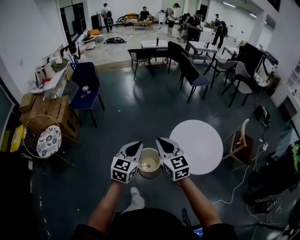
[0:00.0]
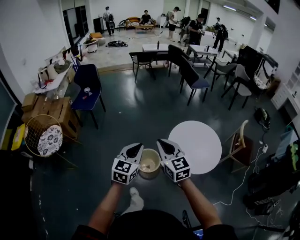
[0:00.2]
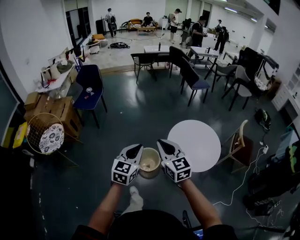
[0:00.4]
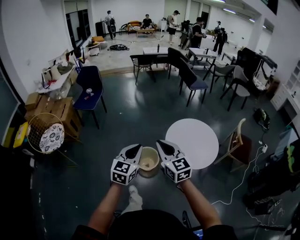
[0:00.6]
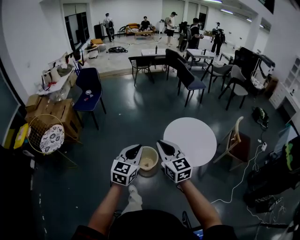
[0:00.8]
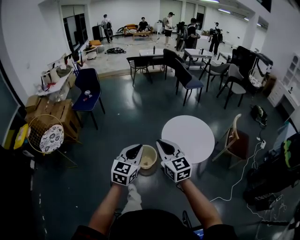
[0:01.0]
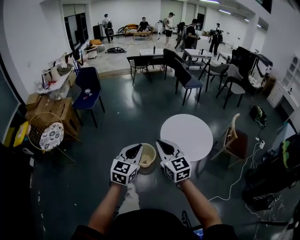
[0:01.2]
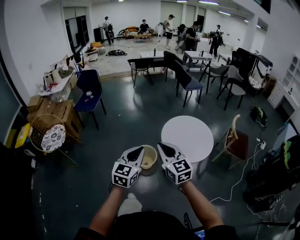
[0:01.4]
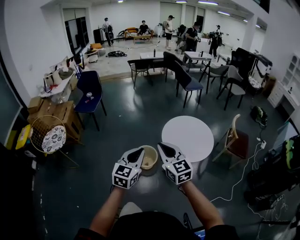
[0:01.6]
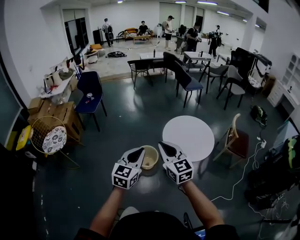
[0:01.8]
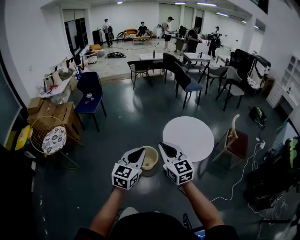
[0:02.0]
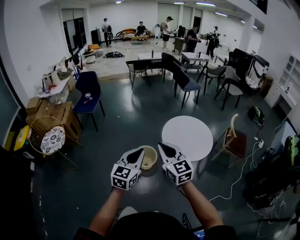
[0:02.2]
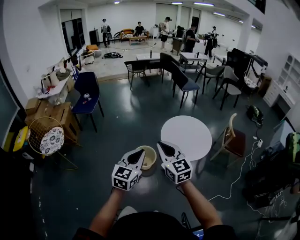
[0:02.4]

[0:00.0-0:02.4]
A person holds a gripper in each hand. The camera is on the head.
0:00.0 to 0:01.2: The grippers both shift backward by roughly 20 cm.
0:01.2 to 0:02.4: The left gripper travels backward by about 5 cm.

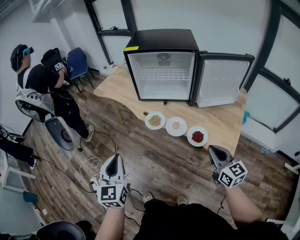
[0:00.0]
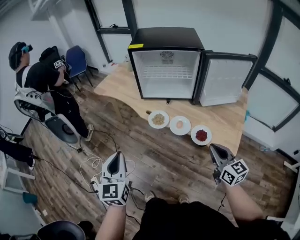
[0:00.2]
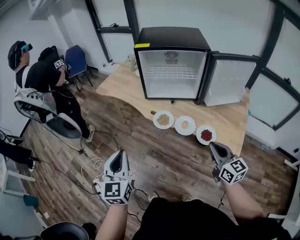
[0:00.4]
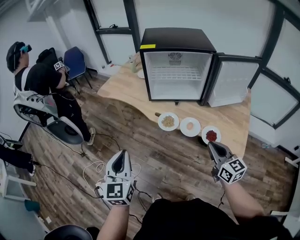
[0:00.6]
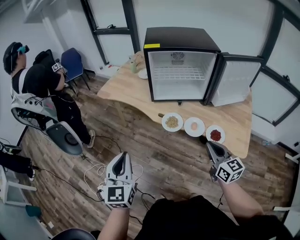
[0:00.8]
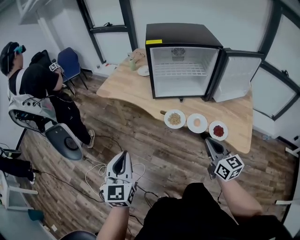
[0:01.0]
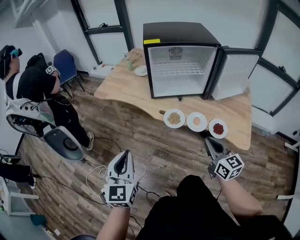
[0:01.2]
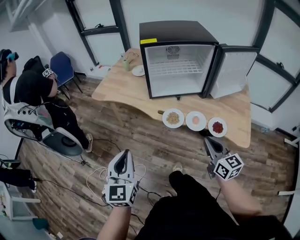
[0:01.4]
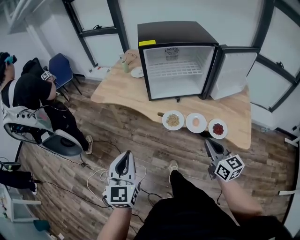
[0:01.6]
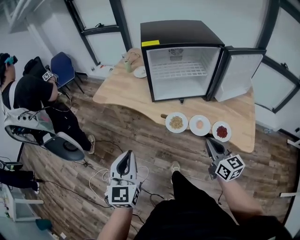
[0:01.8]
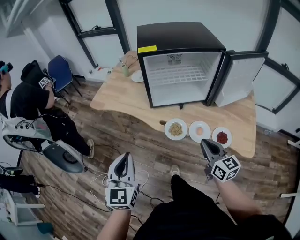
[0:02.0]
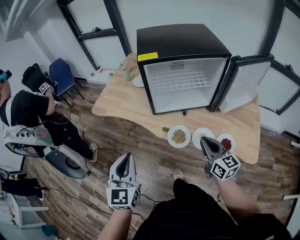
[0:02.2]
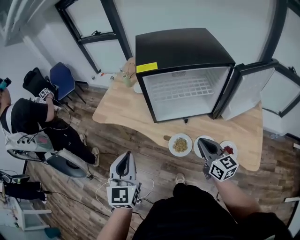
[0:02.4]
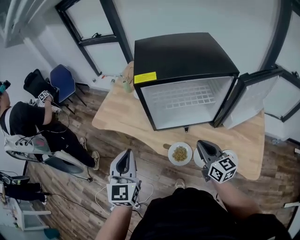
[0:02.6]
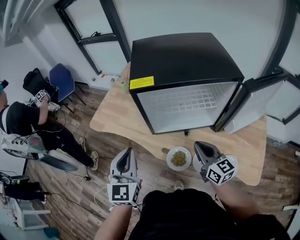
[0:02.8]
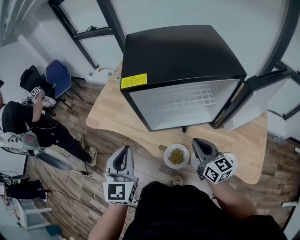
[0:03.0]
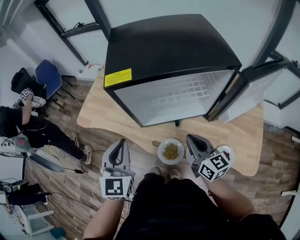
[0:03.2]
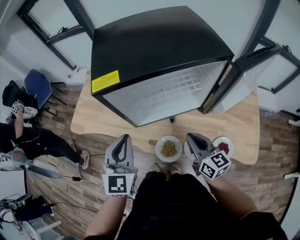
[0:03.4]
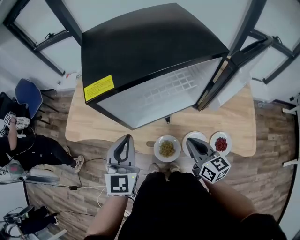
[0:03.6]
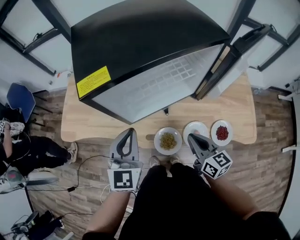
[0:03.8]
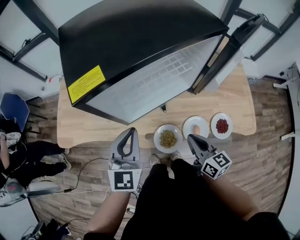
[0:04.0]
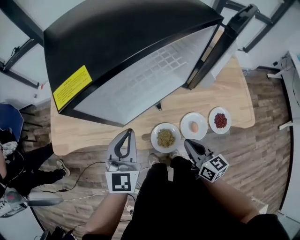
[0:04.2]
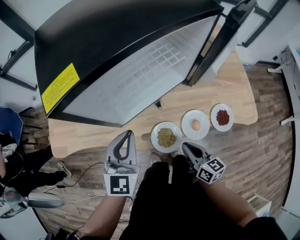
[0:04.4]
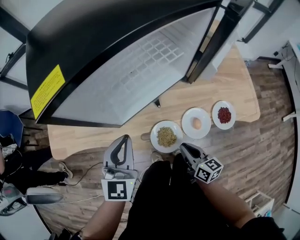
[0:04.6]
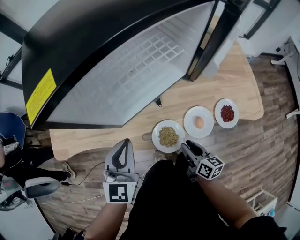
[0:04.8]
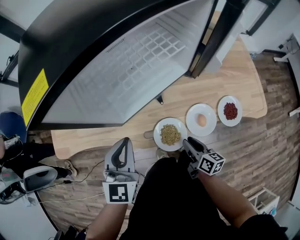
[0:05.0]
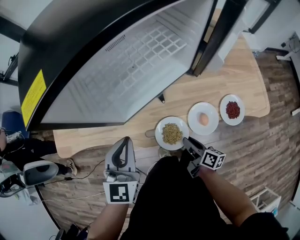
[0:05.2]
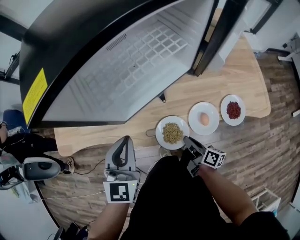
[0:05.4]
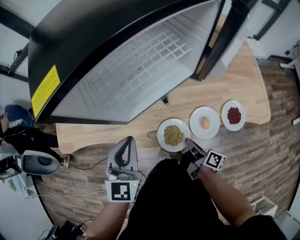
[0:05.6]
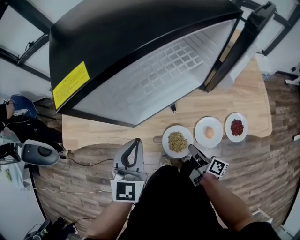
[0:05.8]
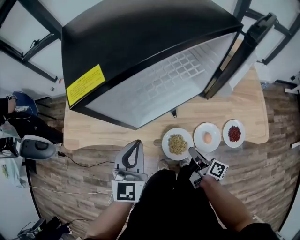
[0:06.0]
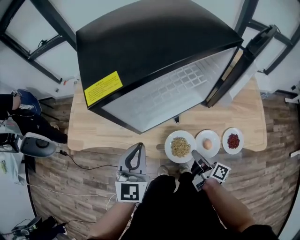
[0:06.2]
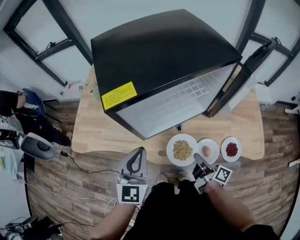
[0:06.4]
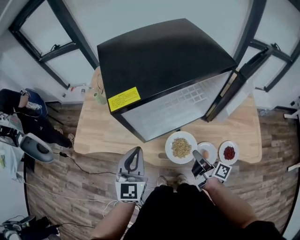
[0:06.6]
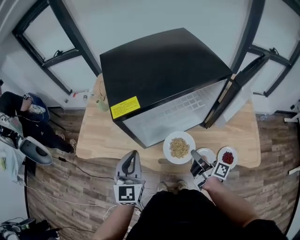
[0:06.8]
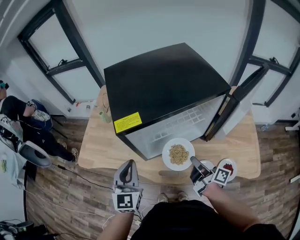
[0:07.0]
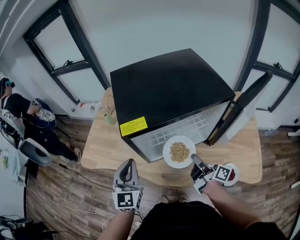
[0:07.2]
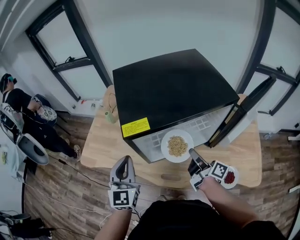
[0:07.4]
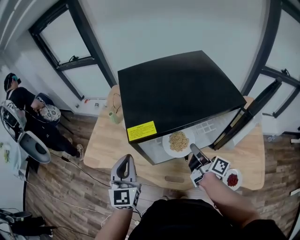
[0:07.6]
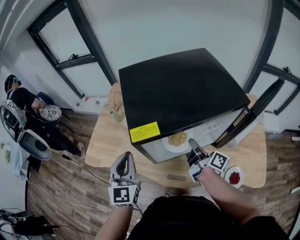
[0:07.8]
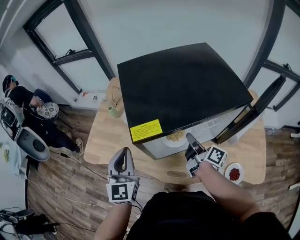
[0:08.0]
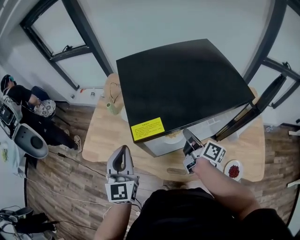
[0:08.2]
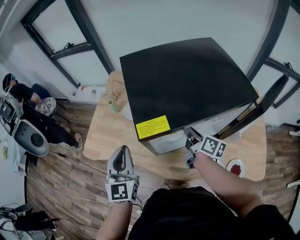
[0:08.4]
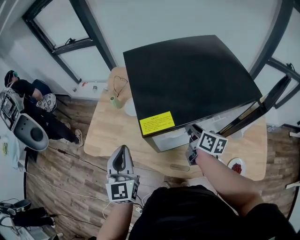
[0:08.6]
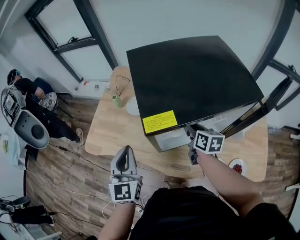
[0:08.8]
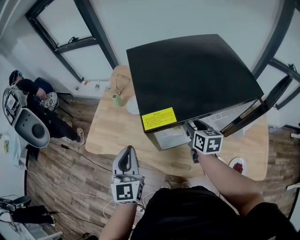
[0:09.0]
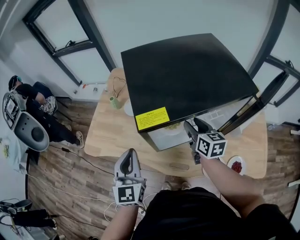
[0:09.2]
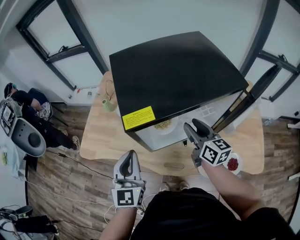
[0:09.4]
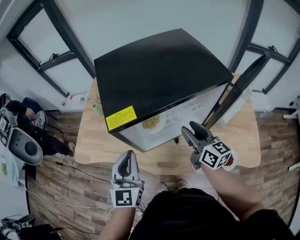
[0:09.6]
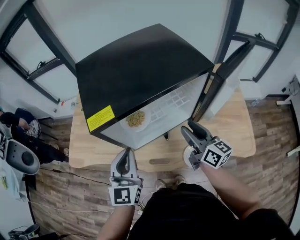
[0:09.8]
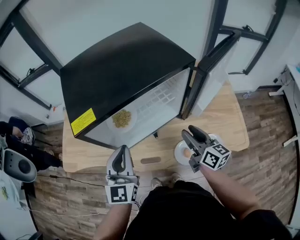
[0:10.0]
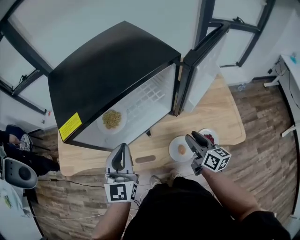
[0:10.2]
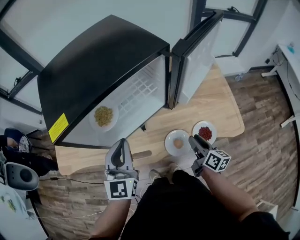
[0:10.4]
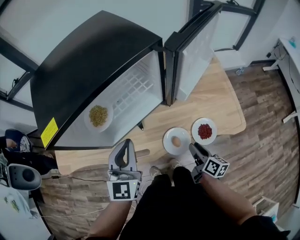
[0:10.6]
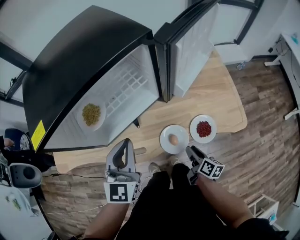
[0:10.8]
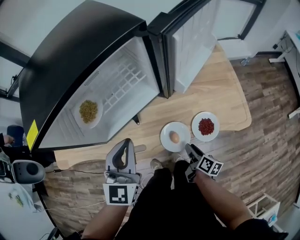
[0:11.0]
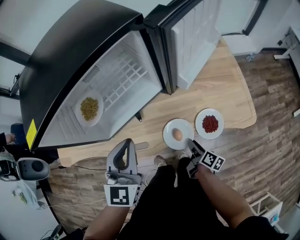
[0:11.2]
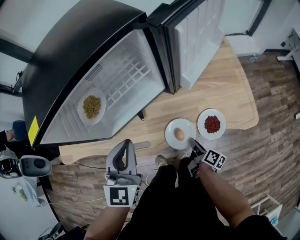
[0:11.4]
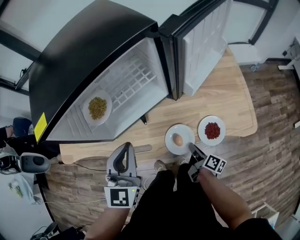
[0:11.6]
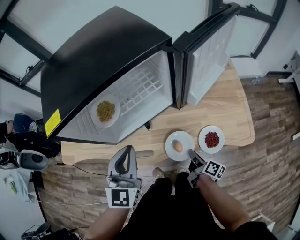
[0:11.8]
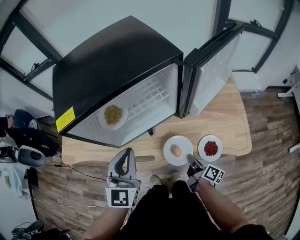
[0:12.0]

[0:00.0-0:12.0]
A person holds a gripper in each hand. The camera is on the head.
0:00.0 to 0:01.6: Both grippers move to the left and forward, approximately 20 cm.
0:01.6 to 0:03.0: The two grippers go some 30 cm forward.
0:03.0 to 0:04.4: The left gripper changes place by roughly 15 cm, and changes its angle by approximately 30 degrees, while the right gripper is displaced downward by some 15 cm, and rotates some 30 degrees.
0:04.4 to 0:06.0: The right gripper moves some 10 cm downward and comes back, rotates about 40 degrees, and opens, then closes once more.
0:06.0 to 0:07.6: The right gripper moves forward and upward, roughly 25 cm. Meanwhile the left gripper goes approximately 15 cm upward, to the left and forward, and turns by some 20 degrees.
0:07.6 to 0:09.0: The right gripper travels forward and to the left by some 10 cm, rolls counterclockwise, seen from behind, by roughly 40 degrees, and opens.
0:09.0 to 0:10.4: The left gripper travels to the right by about 25 cm, and turns by approximately 30 degrees; the right gripper shifts approximately 35 cm to the right and backward, and changes its angle by about 40 degrees.
0:10.4 to 0:12.0: The right gripper travels downward by about 5 cm, swivels approximately 30 degrees, and closes up.

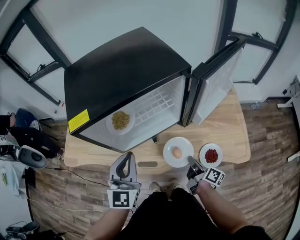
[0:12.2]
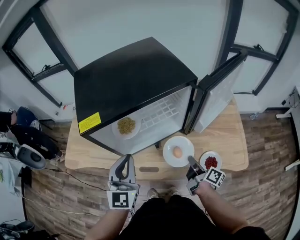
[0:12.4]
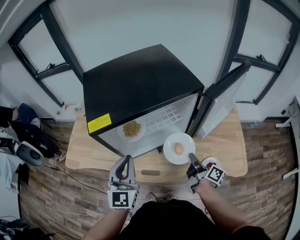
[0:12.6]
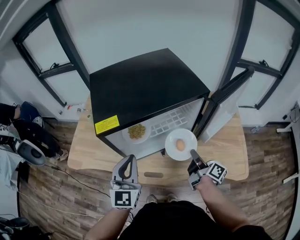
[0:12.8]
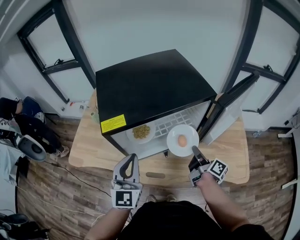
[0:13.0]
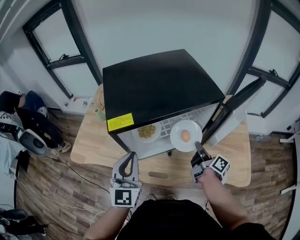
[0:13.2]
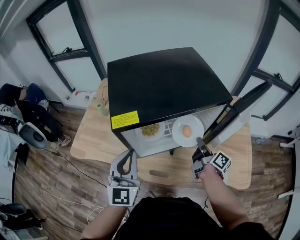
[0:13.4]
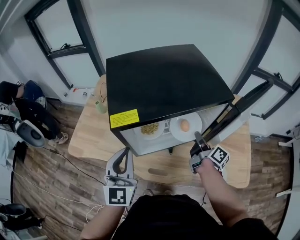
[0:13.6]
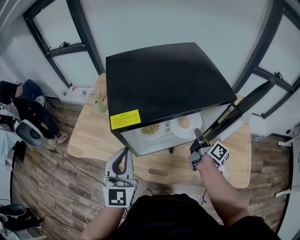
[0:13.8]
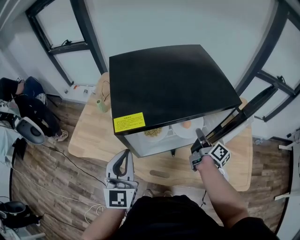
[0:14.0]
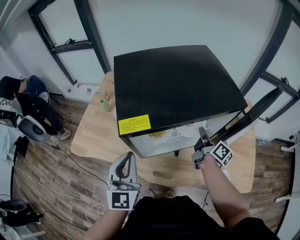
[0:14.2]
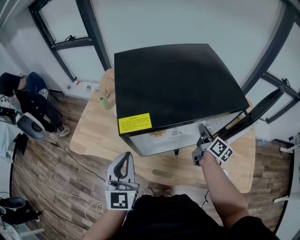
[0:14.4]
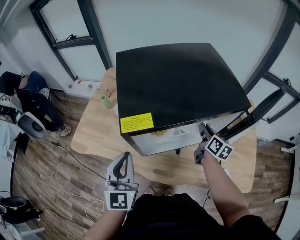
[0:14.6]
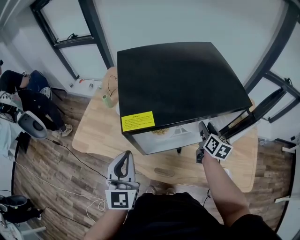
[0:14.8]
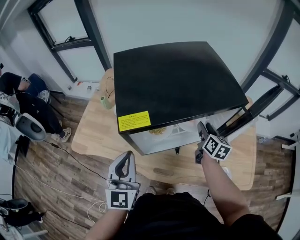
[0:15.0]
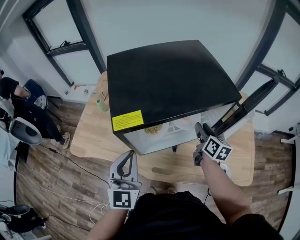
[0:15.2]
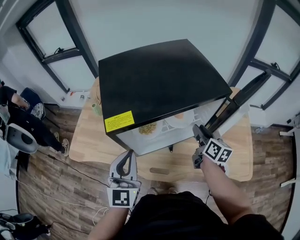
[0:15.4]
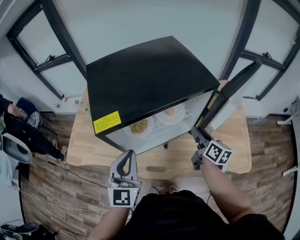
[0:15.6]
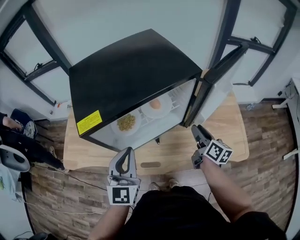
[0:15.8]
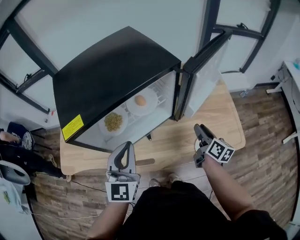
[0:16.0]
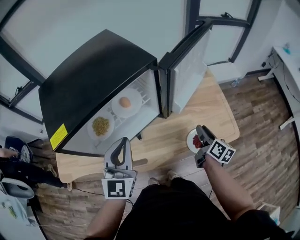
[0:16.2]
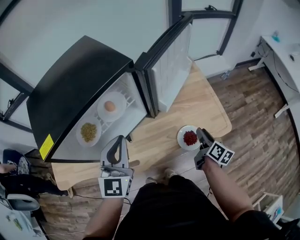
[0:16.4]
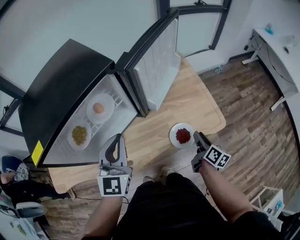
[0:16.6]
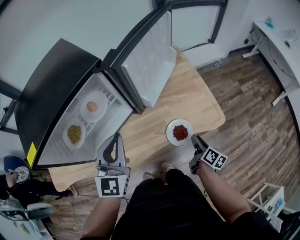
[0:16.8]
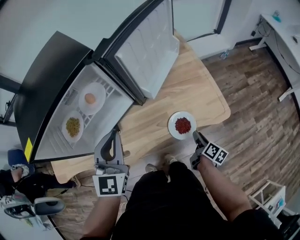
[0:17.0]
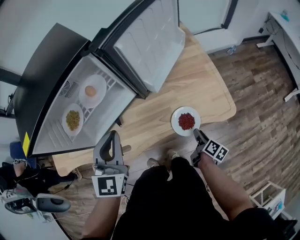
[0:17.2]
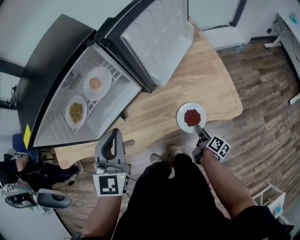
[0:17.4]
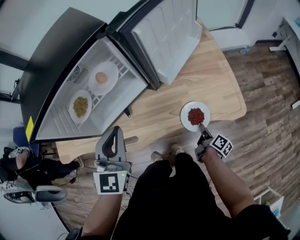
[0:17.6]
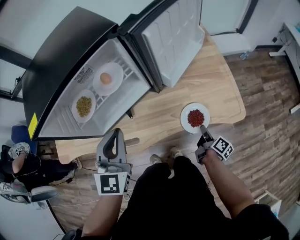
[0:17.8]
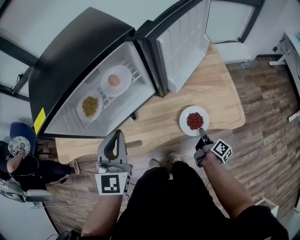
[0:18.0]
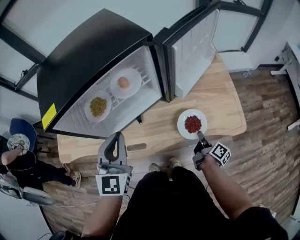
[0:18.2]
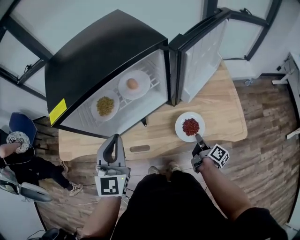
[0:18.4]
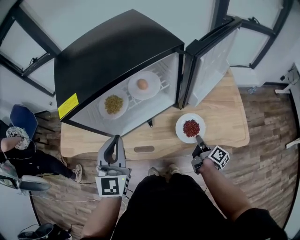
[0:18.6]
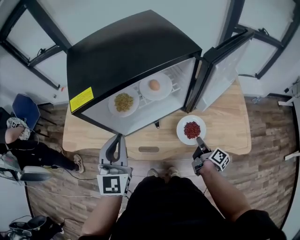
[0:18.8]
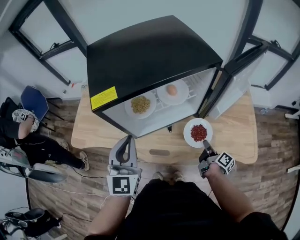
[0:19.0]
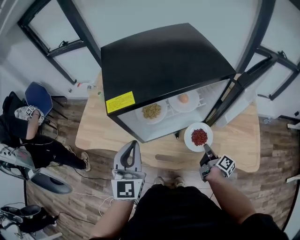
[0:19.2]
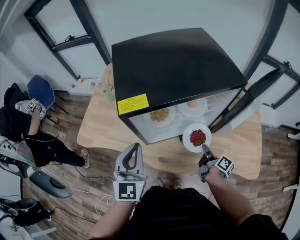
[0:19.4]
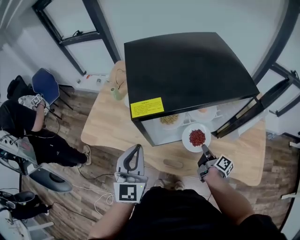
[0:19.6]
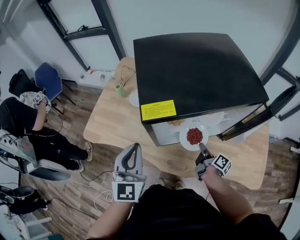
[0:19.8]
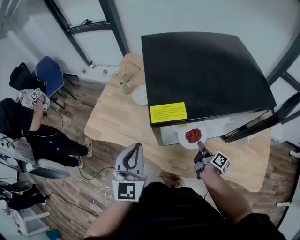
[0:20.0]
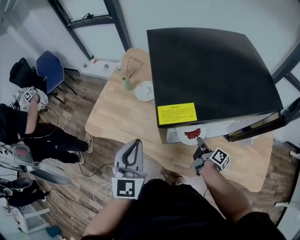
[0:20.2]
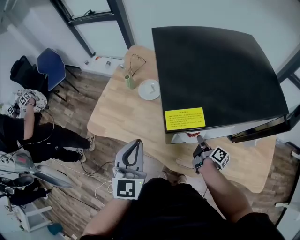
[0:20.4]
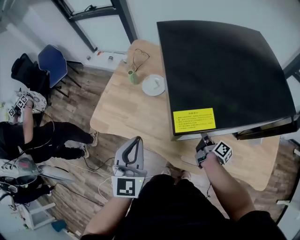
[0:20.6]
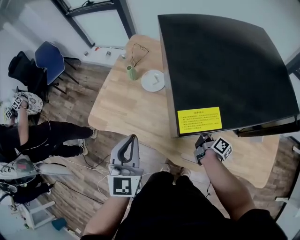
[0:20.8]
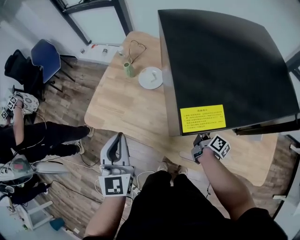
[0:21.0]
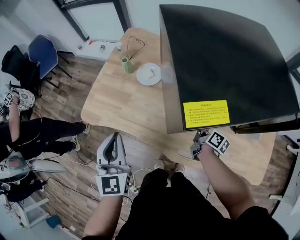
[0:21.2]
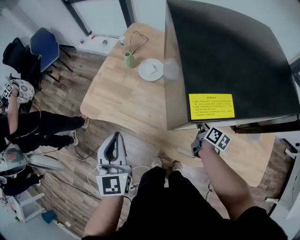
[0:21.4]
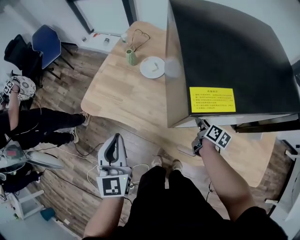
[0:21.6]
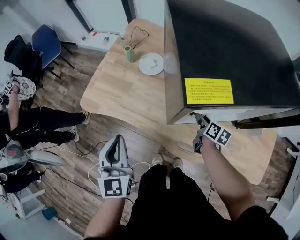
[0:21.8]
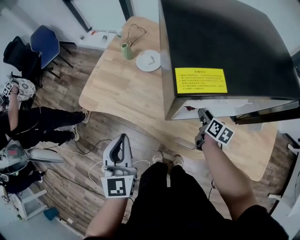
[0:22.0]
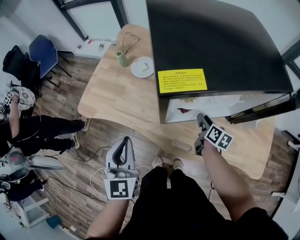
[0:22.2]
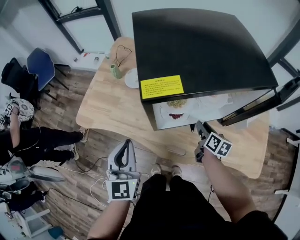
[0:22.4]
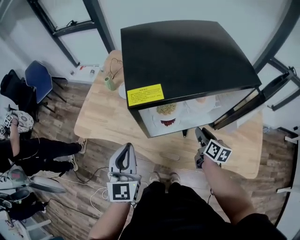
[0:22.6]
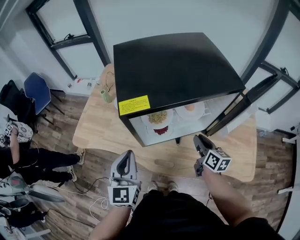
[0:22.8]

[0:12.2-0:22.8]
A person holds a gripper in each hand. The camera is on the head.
0:12.2 to 0:13.8: The left gripper heads to the left, covering approximately 10 cm; the right gripper travels forward and upward by some 25 cm.
0:13.8 to 0:15.2: The right gripper turns by about 40 degrees, and opens its fingers.
0:15.2 to 0:16.8: The left gripper changes place by roughly 30 cm, and turns by some 30 degrees; the right gripper changes place by roughly 40 cm, and swivels about 40 degrees.
0:16.8 to 0:18.2: The right gripper is displaced to the left by roughly 10 cm, travels downward and back again, about 10 cm each way, changes its angle by about 20 degrees, and closes its fingers; the left gripper is displaced to the left and backward by roughly 10 cm.
0:18.2 to 0:19.8: The left gripper moves roughly 25 cm, and rotates about 30 degrees. The right gripper shifts by approximately 30 cm, and changes its angle by some 30 degrees.
0:19.8 to 0:21.2: The left gripper heads to the left, covering approximately 15 cm. The right gripper shifts about 10 cm forward and to the left.
0:21.2 to 0:22.8: The left gripper goes some 15 cm to the right and backward; the right gripper goes approximately 20 cm upward, to the right and backward, turns by about 30 degrees, and opens.
